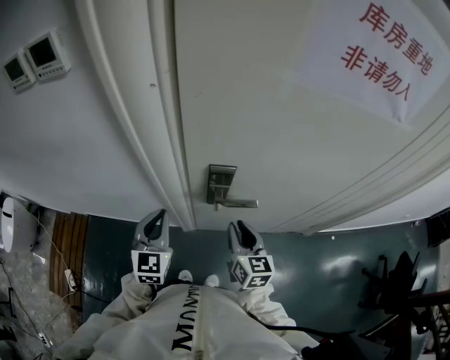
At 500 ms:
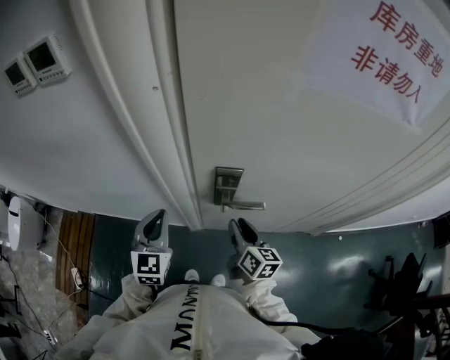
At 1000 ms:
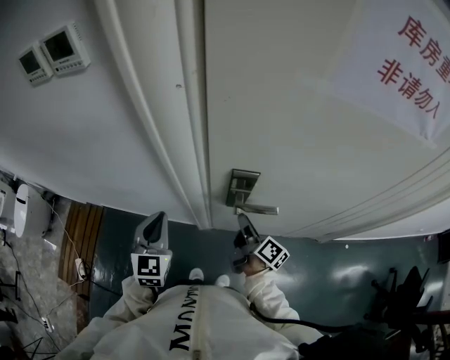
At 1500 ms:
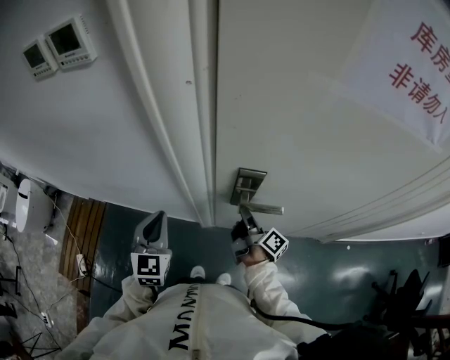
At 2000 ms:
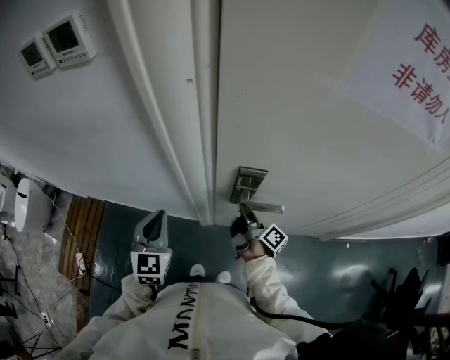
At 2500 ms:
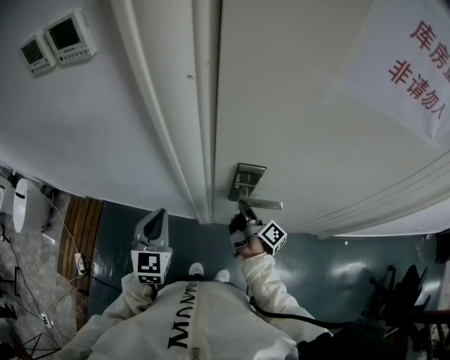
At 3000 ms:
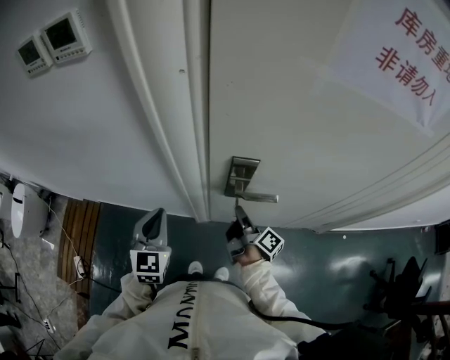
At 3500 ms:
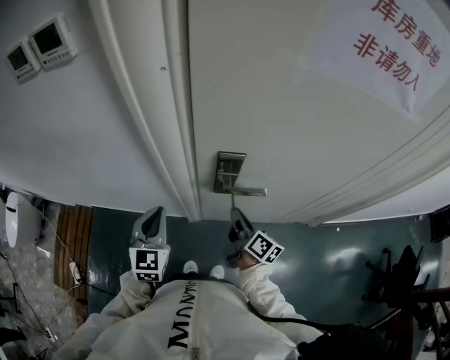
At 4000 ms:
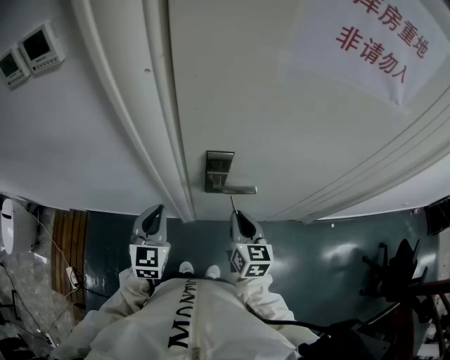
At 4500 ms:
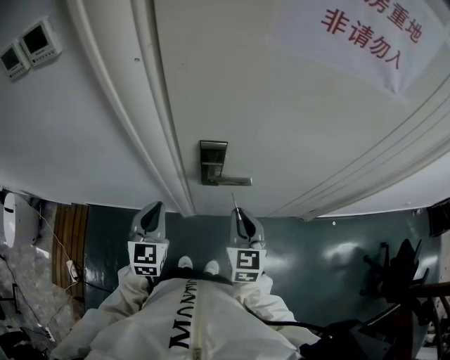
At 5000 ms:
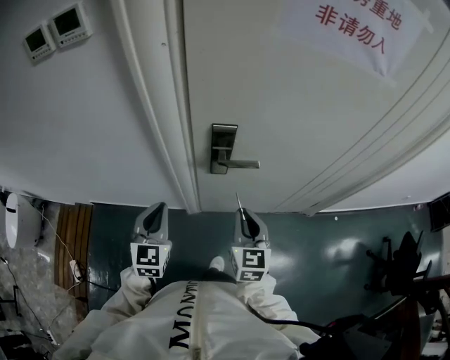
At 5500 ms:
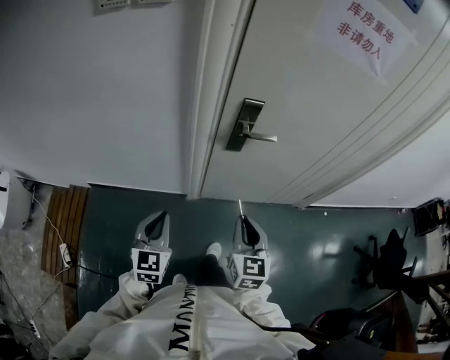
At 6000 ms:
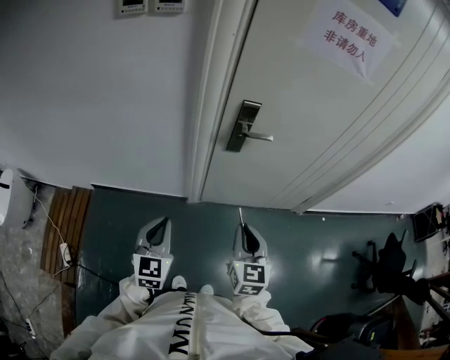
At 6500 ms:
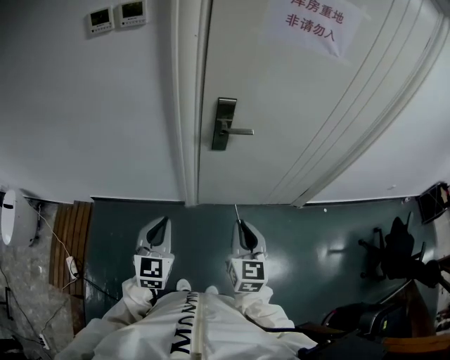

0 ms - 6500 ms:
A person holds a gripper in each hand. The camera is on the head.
0 ms - 2000 ms: The left gripper travels to the left by approximately 5 cm; the right gripper shifts about 10 cm forward and downward, and twists about 70 degrees clockwise, seen from behind.
2000 ms - 4500 ms: The left gripper shifts roughly 5 cm to the right; the right gripper goes approximately 15 cm backward and upward, and rotates around the line of its fingers by approximately 90 degrees, counterclockwise from behind.
4500 ms - 6500 ms: The two grippers go about 25 cm backward.

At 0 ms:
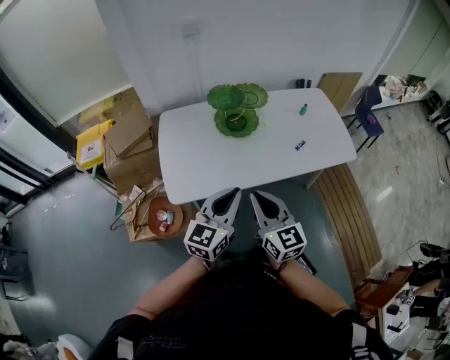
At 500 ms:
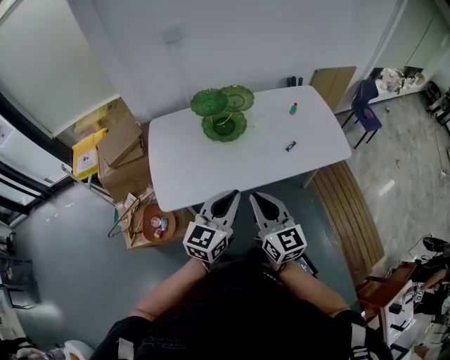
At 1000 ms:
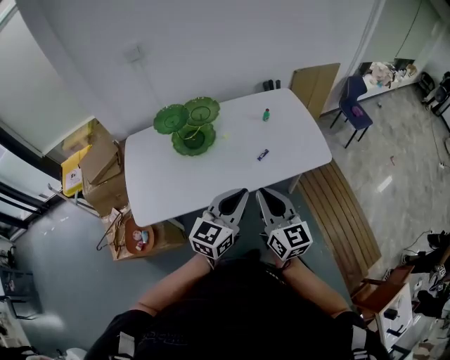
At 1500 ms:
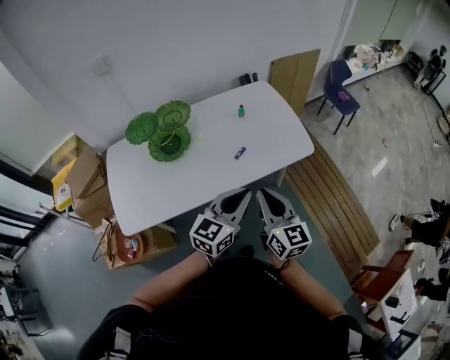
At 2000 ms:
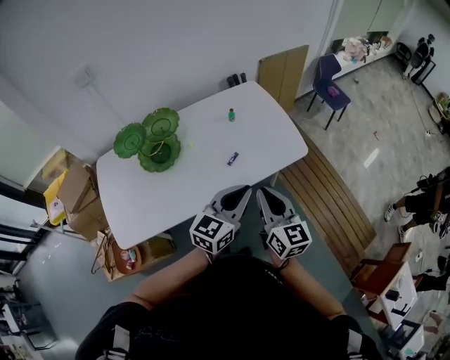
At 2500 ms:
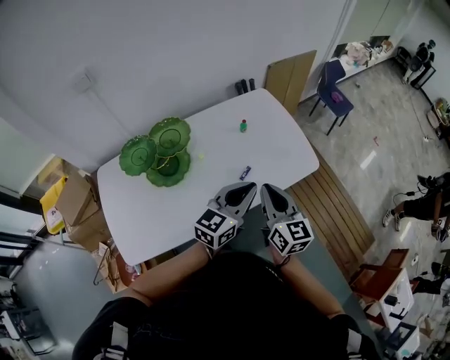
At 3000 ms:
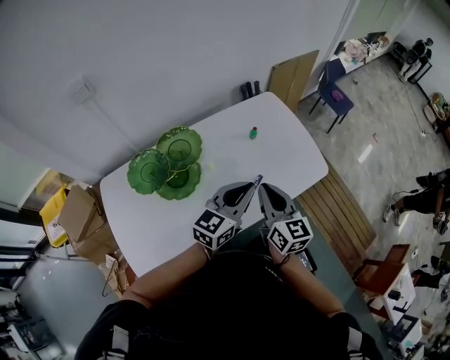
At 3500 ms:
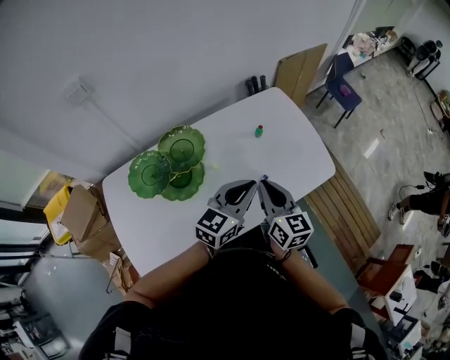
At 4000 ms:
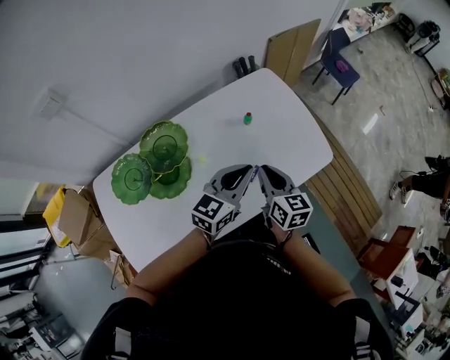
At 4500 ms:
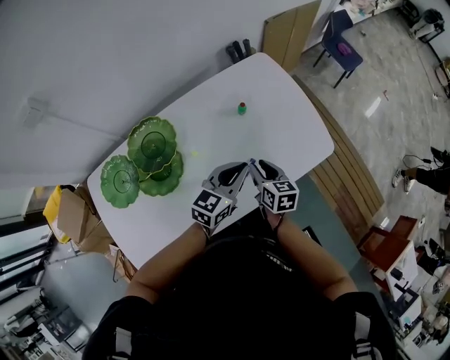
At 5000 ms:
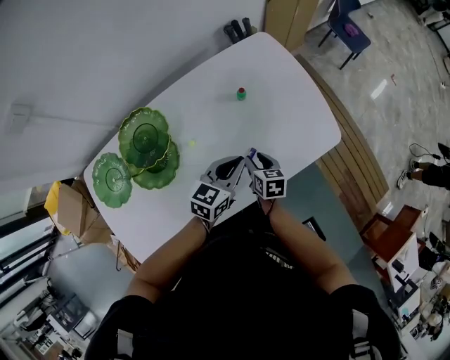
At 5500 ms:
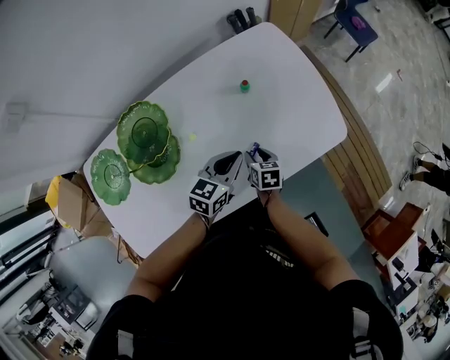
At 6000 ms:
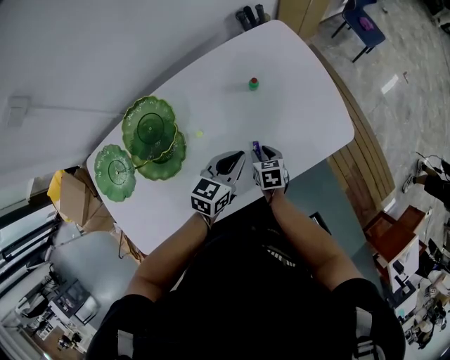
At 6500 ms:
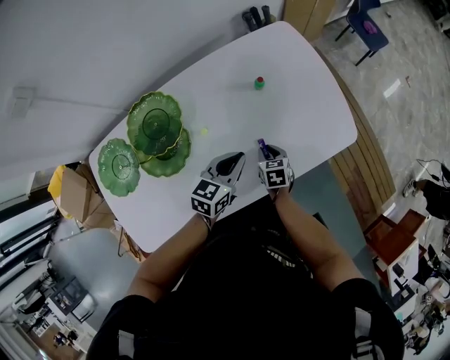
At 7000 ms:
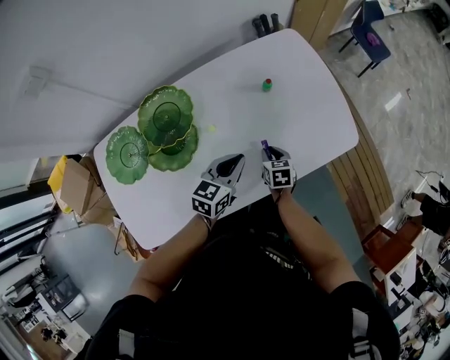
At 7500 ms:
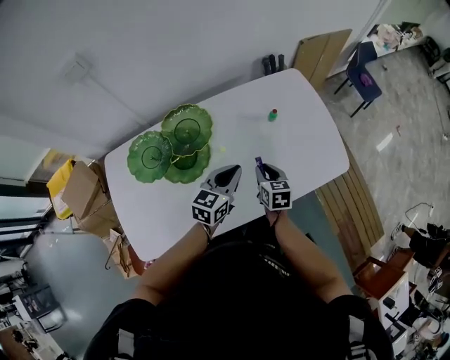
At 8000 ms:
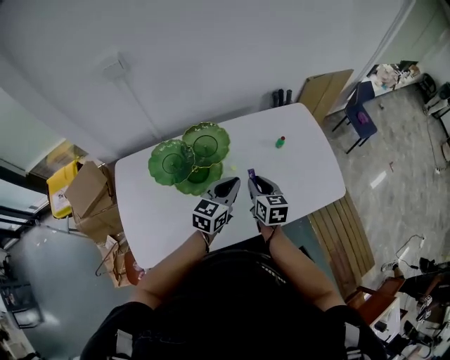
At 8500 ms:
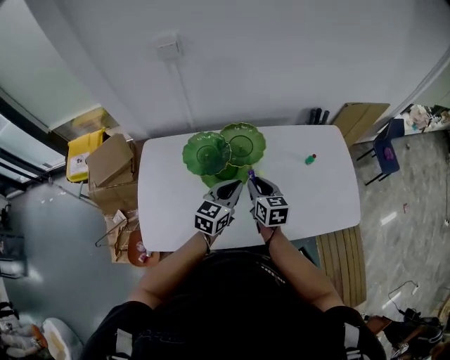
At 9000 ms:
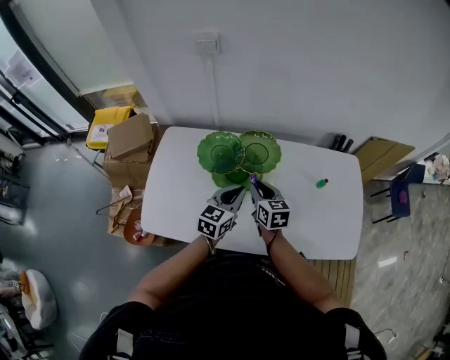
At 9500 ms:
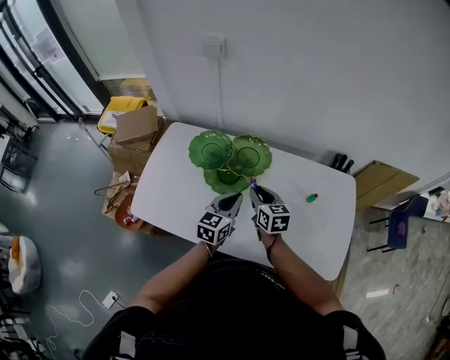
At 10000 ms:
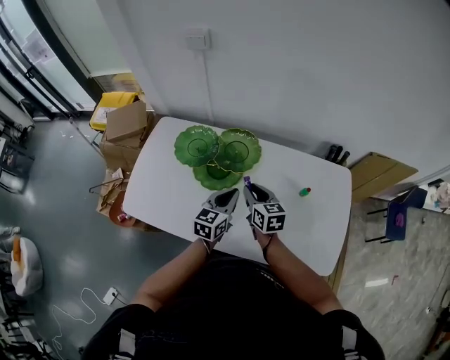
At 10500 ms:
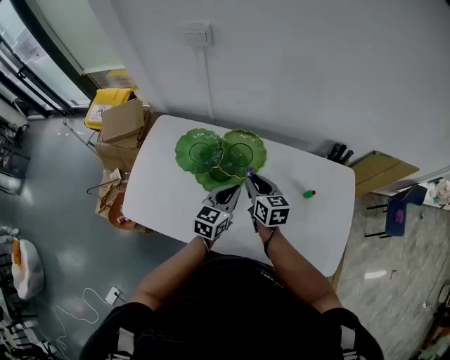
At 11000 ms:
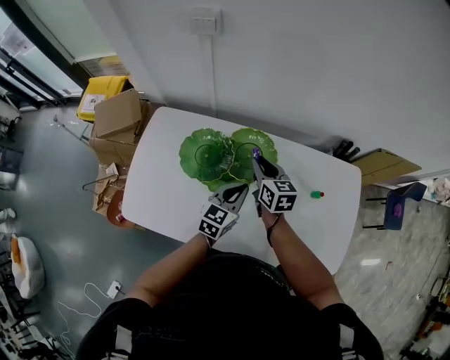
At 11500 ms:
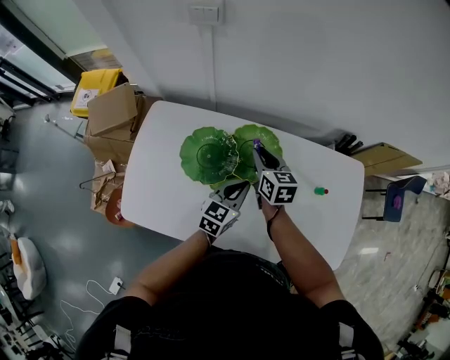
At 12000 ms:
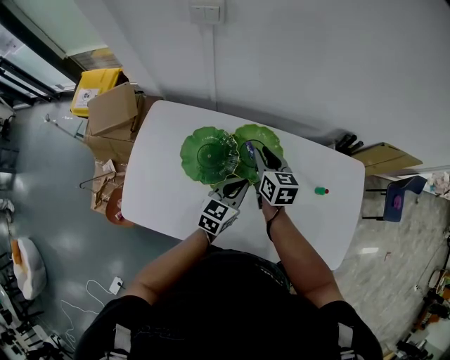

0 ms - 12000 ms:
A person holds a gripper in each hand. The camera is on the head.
0 ms - 2000 ms: Both grippers move to the right and forward, about 40 cm. The left gripper swivels about 20 degrees. The right gripper rotates approximately 20 degrees.
2000 ms - 4000 ms: The right gripper is displaced forward, to the left and downward by about 30 cm, while the left gripper heads forward and to the left, covering roughly 25 cm.
4000 ms - 6000 ms: The right gripper moves downward, about 30 cm, angles its fingers downward, by roughly 30 degrees, and opens up; the left gripper heads downward, covering some 15 cm.
6000 ms - 8000 ms: The right gripper is displaced upward and to the left by roughly 25 cm, and changes its angle by about 30 degrees. The left gripper goes some 20 cm to the left, upward and backward.
8000 ms - 10000 ms: The left gripper turns by roughly 40 degrees; the right gripper changes its angle by roughly 40 degrees.
10000 ms - 12000 ms: The right gripper is displaced forward and to the left by approximately 15 cm, while the left gripper is displaced forward by roughly 10 cm.

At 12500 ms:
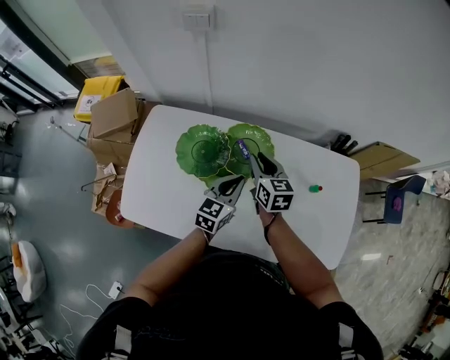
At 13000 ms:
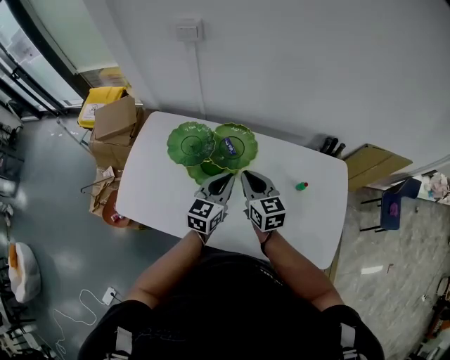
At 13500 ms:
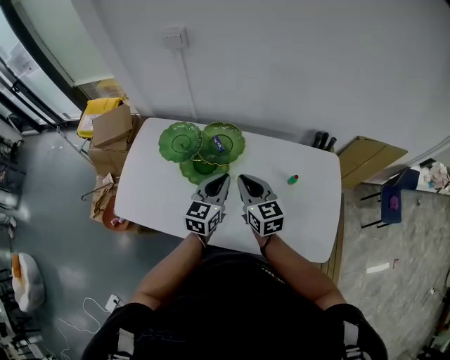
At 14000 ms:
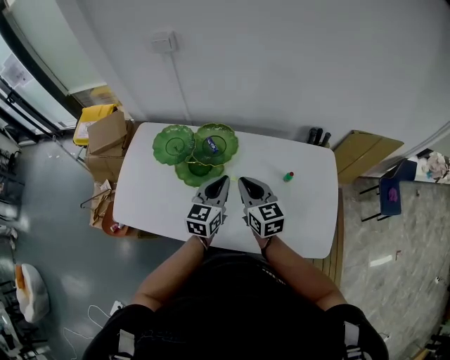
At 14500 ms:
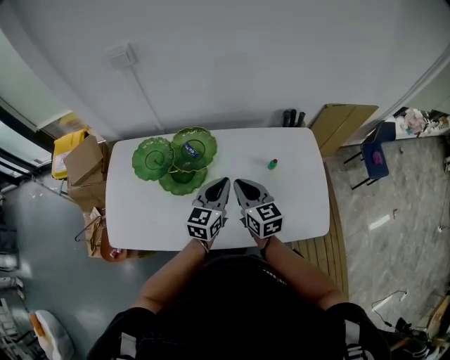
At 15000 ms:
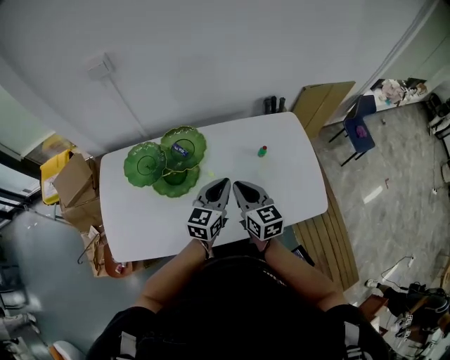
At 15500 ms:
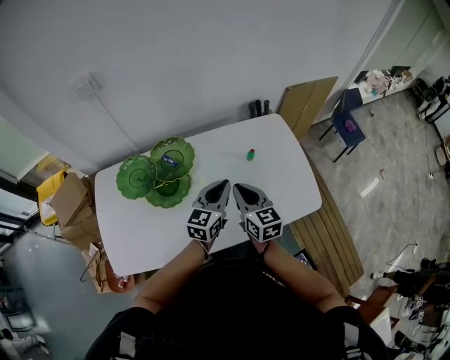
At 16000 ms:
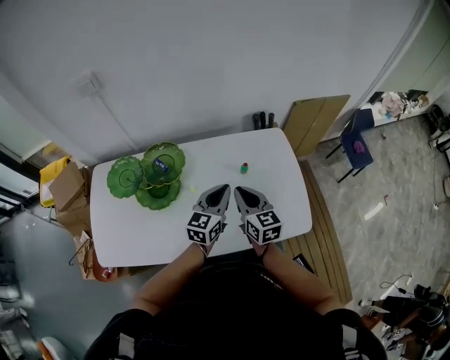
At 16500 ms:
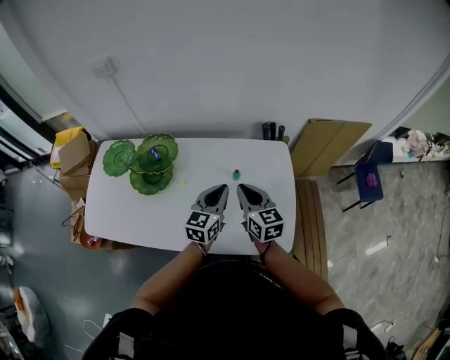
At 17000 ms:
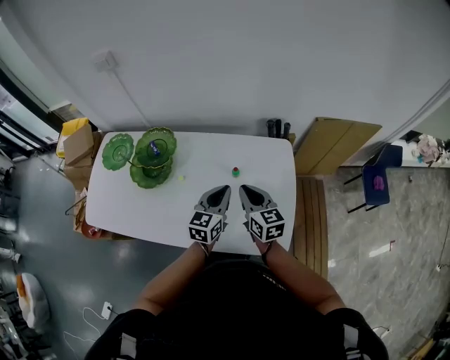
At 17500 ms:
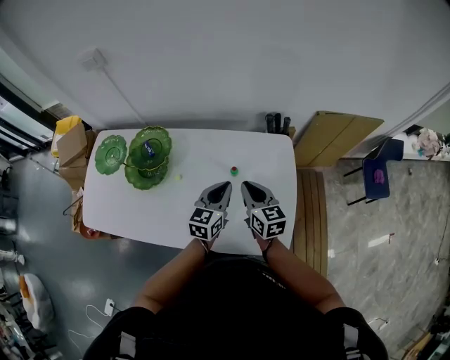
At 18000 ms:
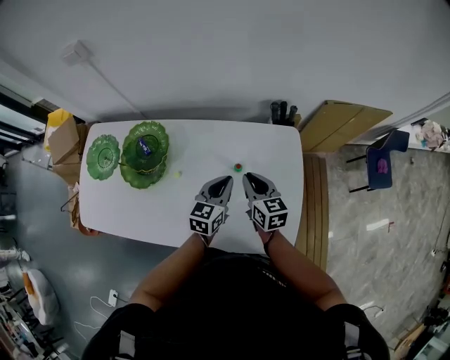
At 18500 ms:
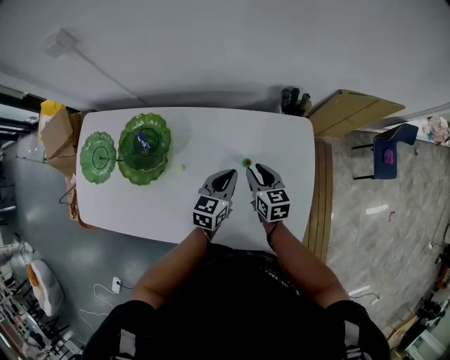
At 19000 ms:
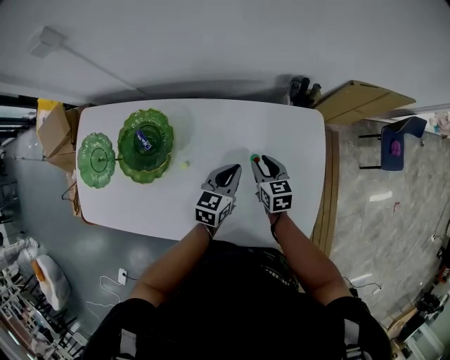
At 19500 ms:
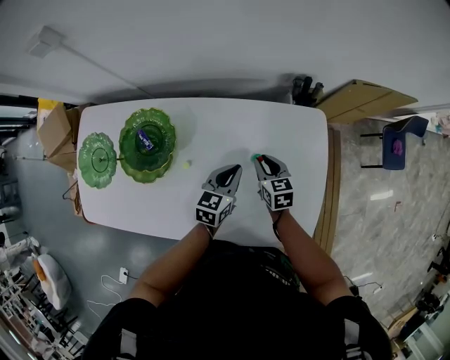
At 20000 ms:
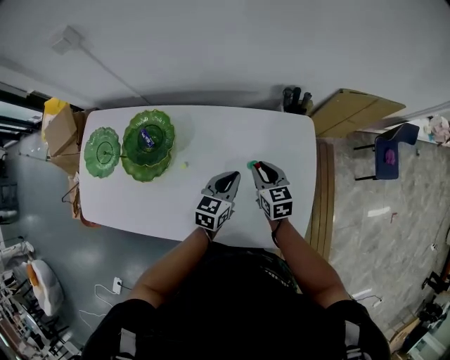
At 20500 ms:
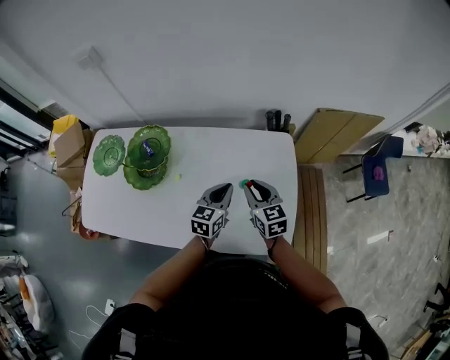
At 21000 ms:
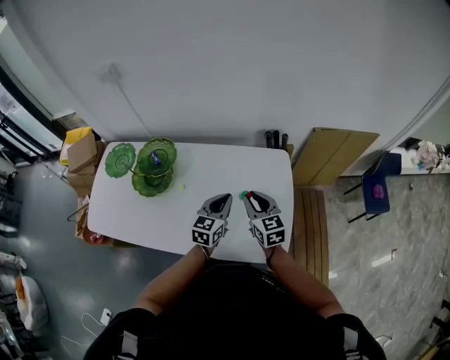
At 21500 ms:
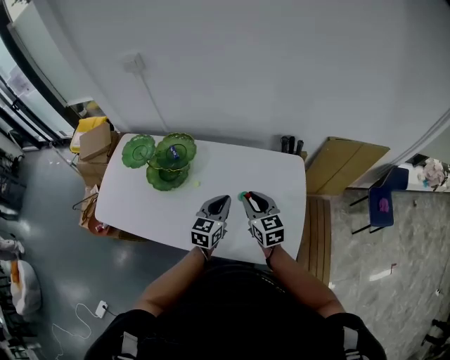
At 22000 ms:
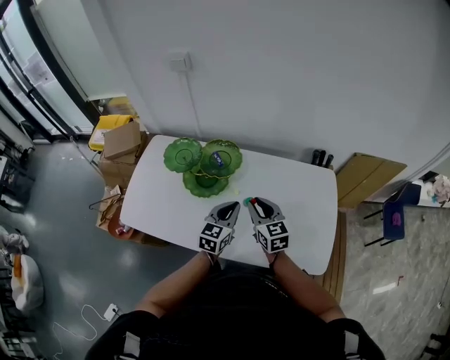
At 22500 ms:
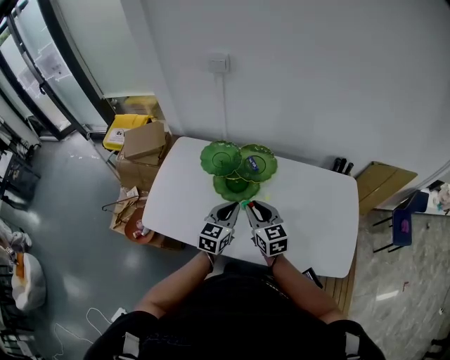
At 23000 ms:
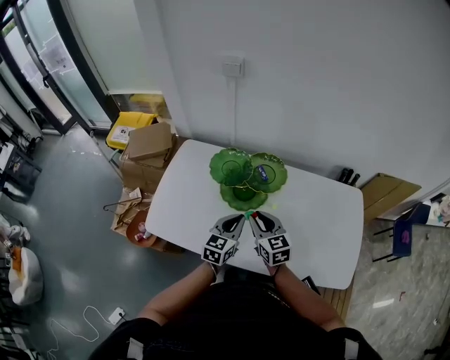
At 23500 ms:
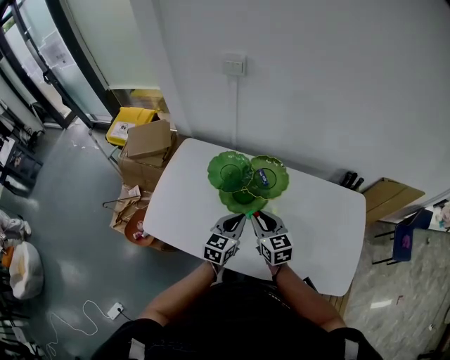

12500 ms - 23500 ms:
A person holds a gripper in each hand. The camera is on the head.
12500 ms - 14500 ms: The left gripper shifts some 15 cm to the right, backward and upward. The right gripper travels backward and to the right by roughly 20 cm.
14500 ms - 16000 ms: The two grippers go about 10 cm to the right.
16000 ms - 18000 ms: Both grippers move to the right, forward and downward, about 15 cm.
18000 ms - 20000 ms: The two grippers go roughly 5 cm downward.
20000 ms - 21500 ms: Both grippers travel together upward and backward, approximately 15 cm.
21500 ms - 23500 ms: Both grippers move to the left, roughly 35 cm.